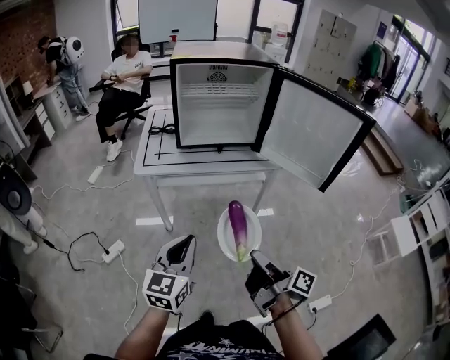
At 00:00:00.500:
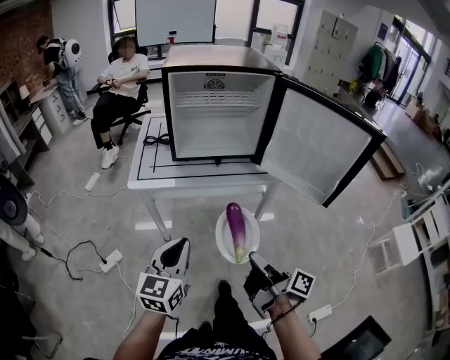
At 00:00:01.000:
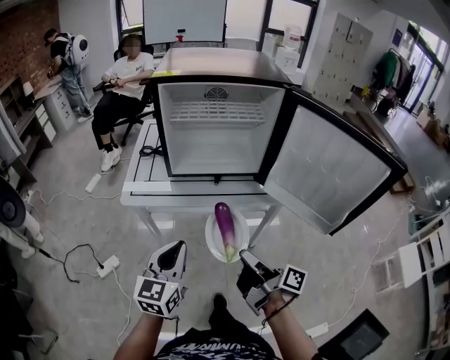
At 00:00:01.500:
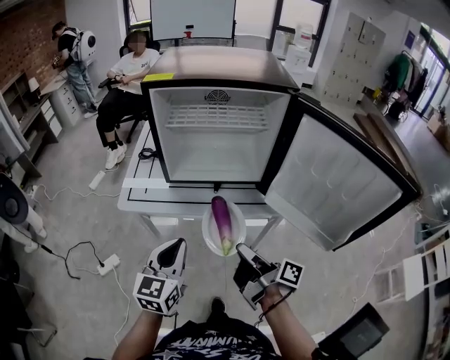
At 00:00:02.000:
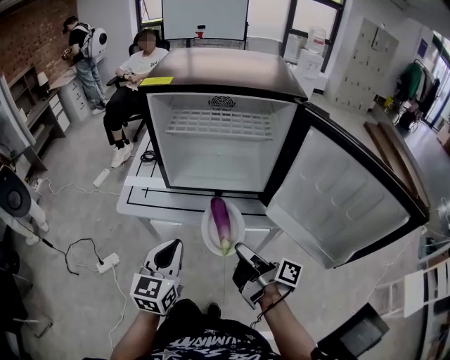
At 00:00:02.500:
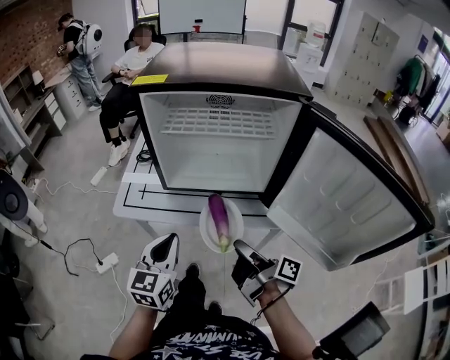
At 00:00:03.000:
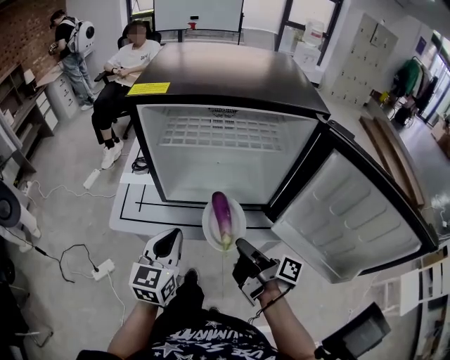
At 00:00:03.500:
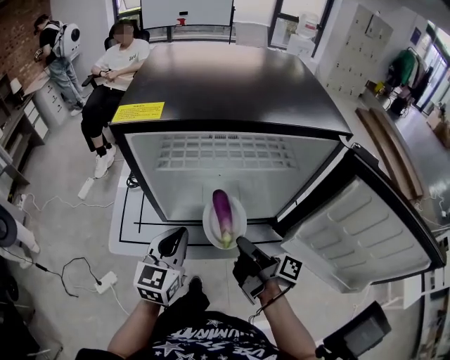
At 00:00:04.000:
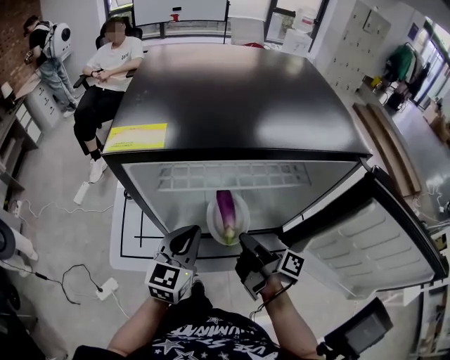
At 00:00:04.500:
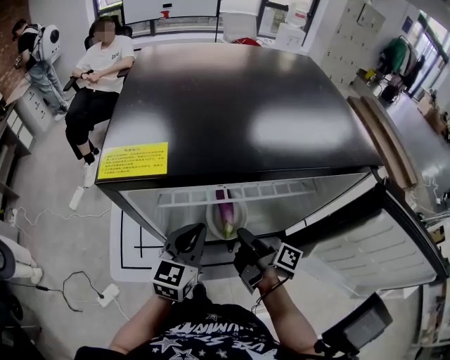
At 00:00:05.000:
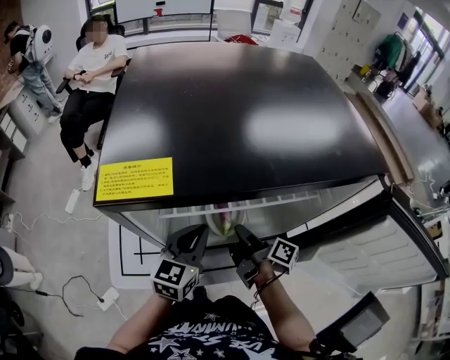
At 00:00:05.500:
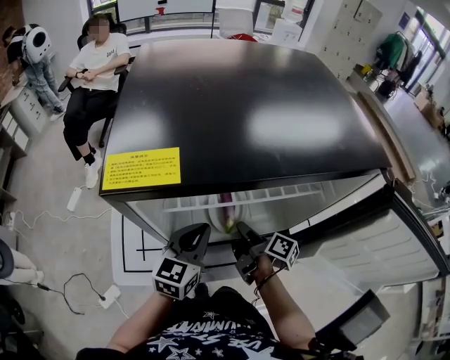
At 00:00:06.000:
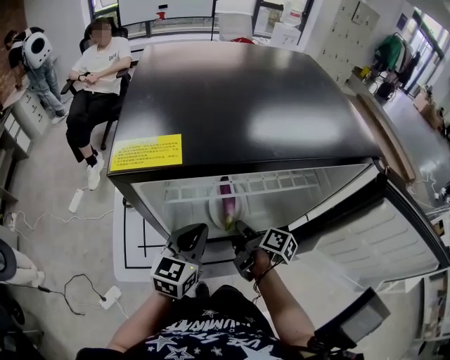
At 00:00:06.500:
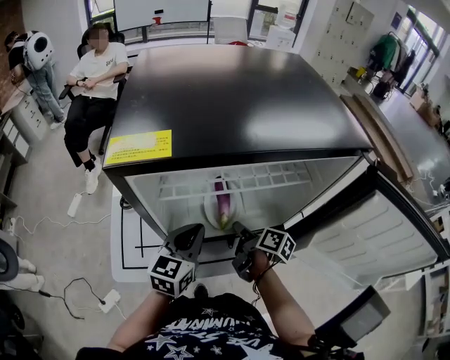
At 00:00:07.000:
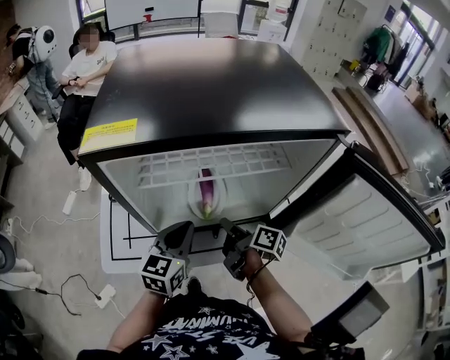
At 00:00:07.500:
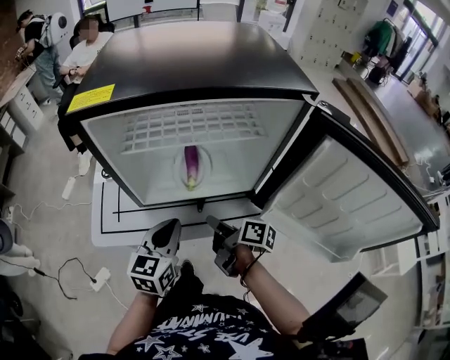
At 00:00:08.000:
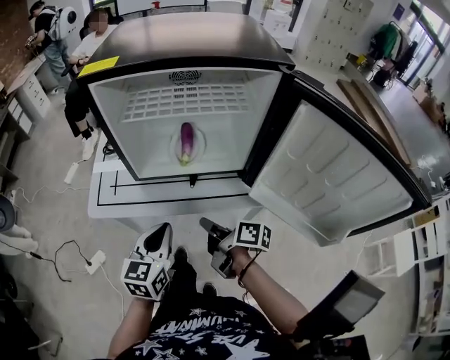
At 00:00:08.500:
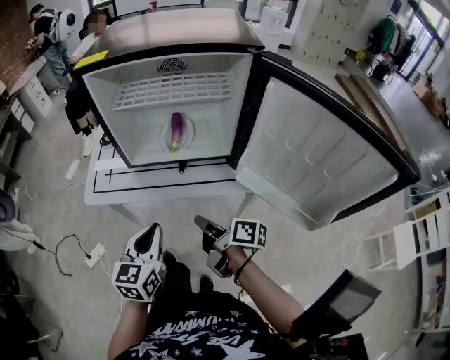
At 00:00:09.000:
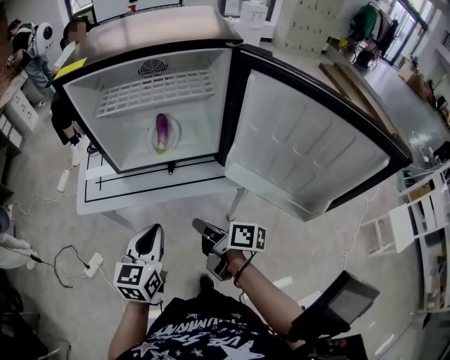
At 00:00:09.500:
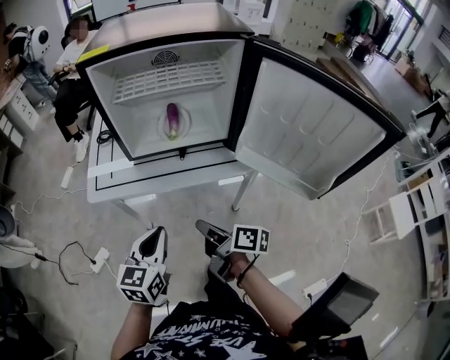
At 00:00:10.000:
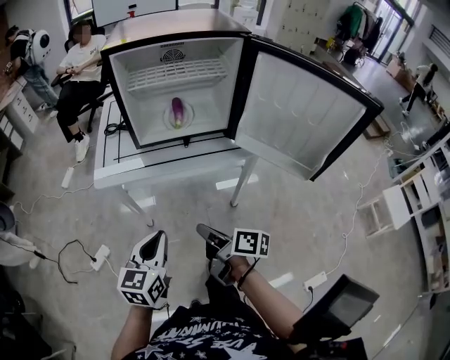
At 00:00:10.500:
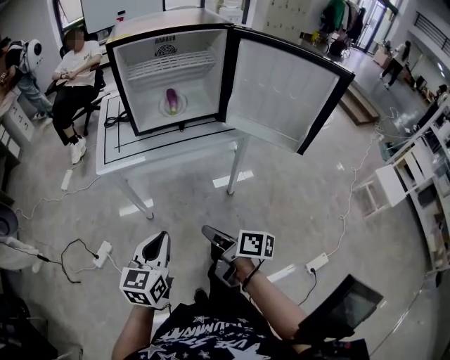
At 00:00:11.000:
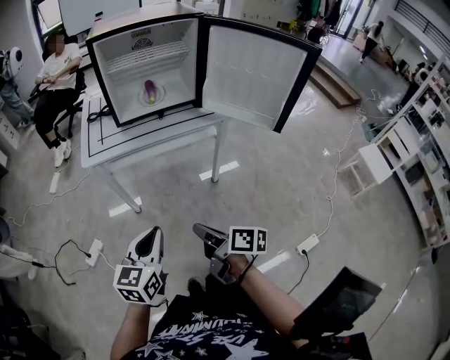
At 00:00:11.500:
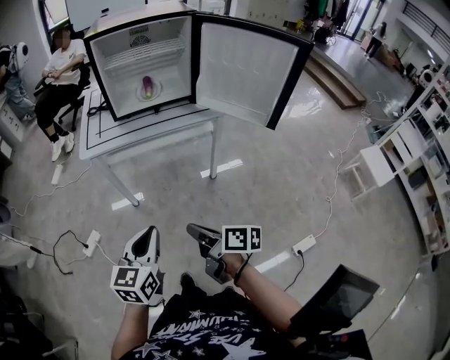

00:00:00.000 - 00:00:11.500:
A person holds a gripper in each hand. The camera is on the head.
00:00:00.000 - 00:00:02.000: The left gripper moves approximately 25 cm.
00:00:02.000 - 00:00:04.000: The left gripper ends up about 25 cm from where it was.
00:00:06.000 - 00:00:07.500: The left gripper moves roughly 10 cm.
00:00:07.500 - 00:00:09.500: The left gripper changes place by approximately 20 cm.
00:00:09.500 - 00:00:11.500: The left gripper changes place by some 30 cm.

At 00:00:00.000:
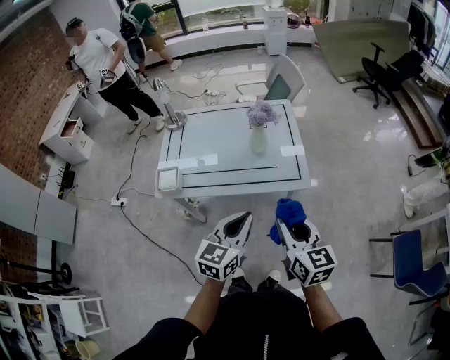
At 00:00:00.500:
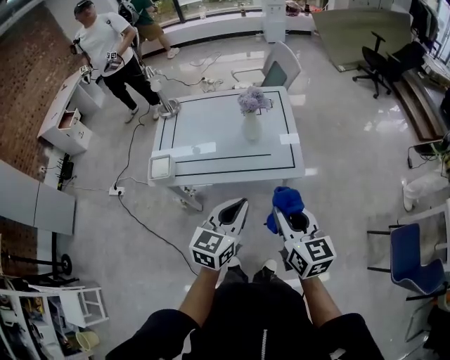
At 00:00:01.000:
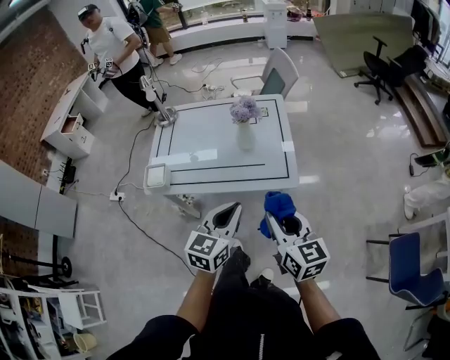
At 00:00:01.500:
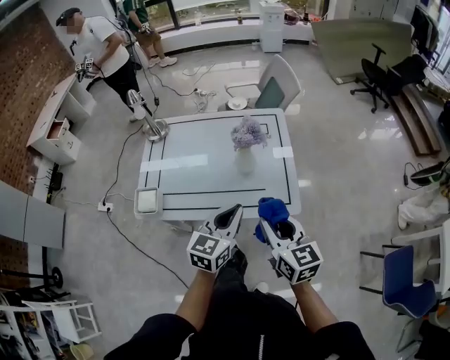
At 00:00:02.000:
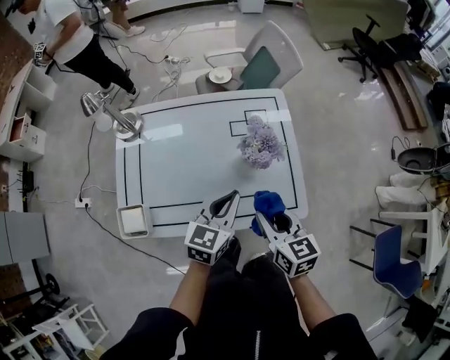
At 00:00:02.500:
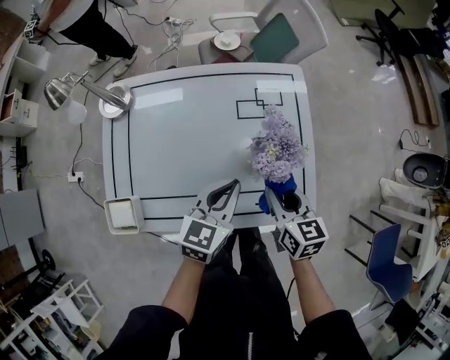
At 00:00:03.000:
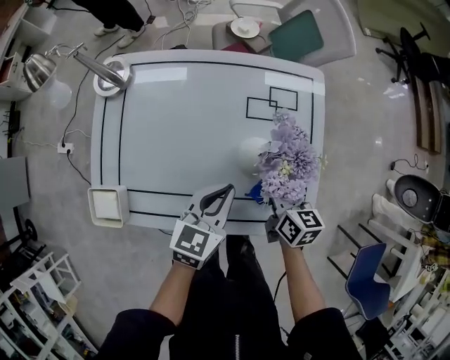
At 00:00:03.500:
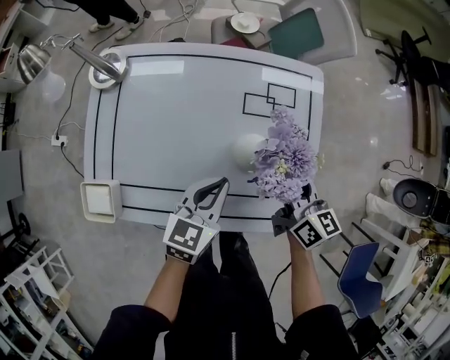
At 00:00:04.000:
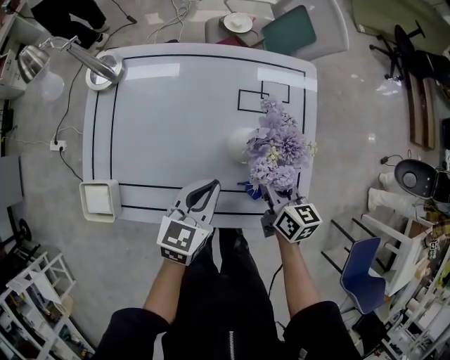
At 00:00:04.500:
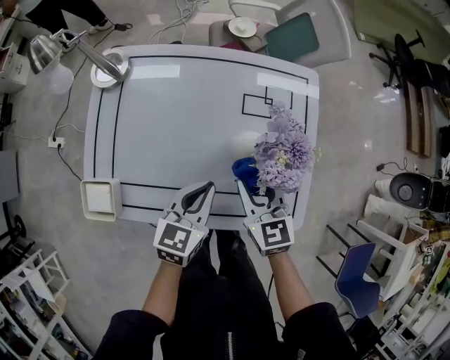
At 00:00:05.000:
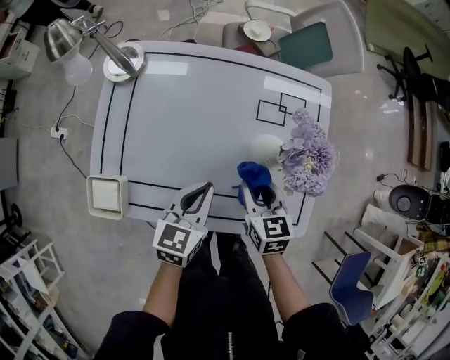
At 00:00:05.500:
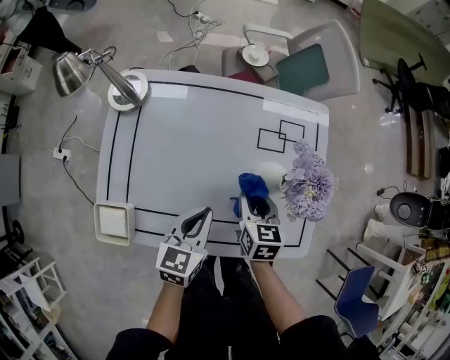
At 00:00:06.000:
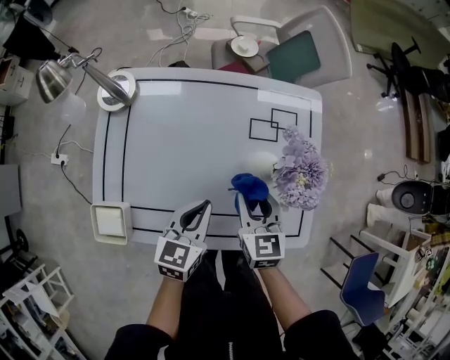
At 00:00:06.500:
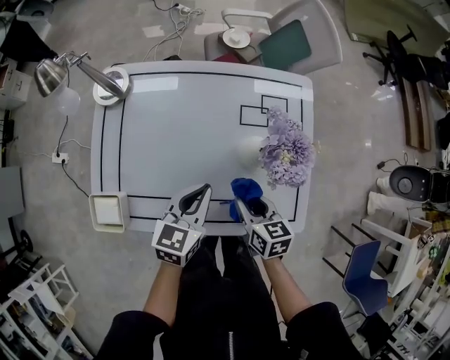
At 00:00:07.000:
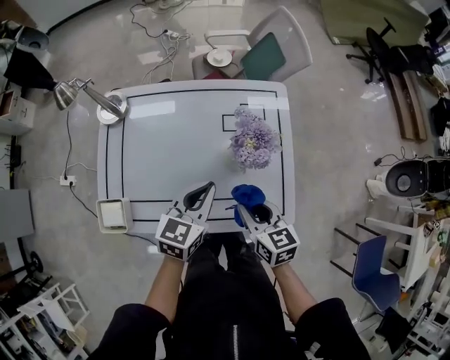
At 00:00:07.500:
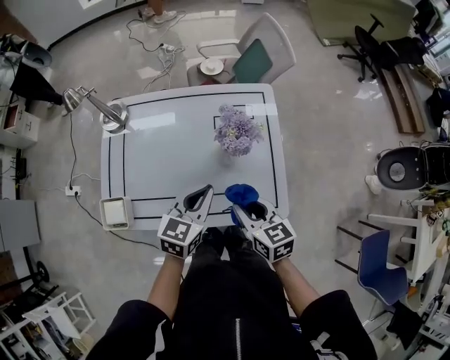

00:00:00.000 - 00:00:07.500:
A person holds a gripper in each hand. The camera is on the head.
00:00:00.000 - 00:00:02.000: The two grippers go roughly 30 cm forward.
00:00:02.000 - 00:00:04.000: The right gripper heads downward and forward, covering roughly 20 cm. The left gripper shifts roughly 10 cm downward and forward.
00:00:04.000 - 00:00:05.500: Both grippers travel together to the left, roughly 10 cm.
00:00:05.500 - 00:00:07.500: The right gripper is displaced backward, upward and to the right by about 20 cm. Meanwhile the left gripper travels to the right and upward by roughly 15 cm.

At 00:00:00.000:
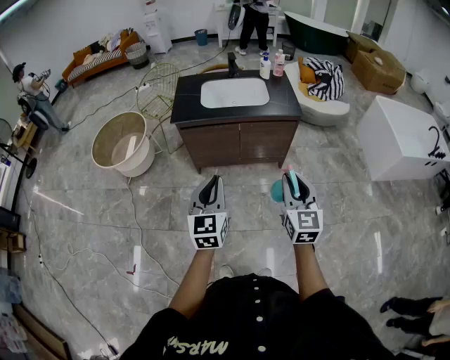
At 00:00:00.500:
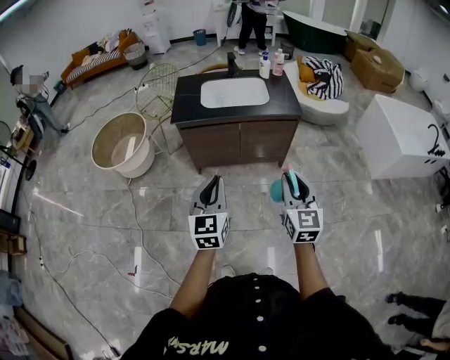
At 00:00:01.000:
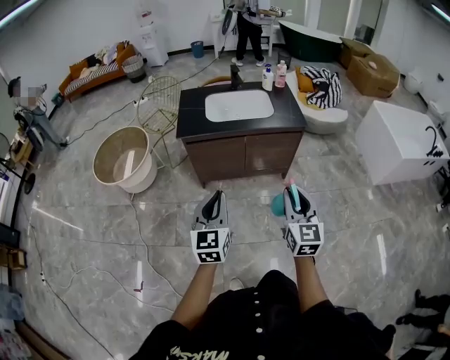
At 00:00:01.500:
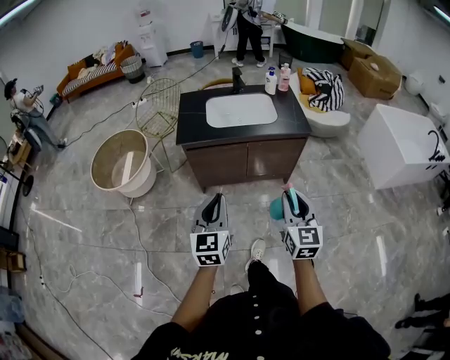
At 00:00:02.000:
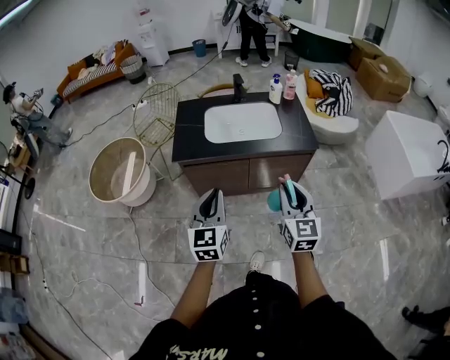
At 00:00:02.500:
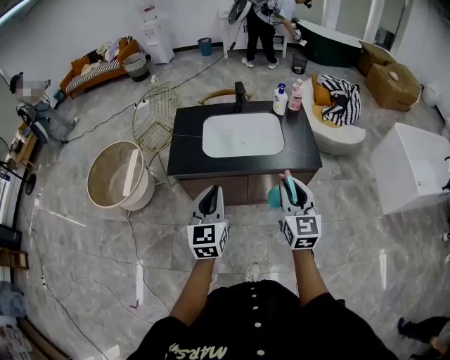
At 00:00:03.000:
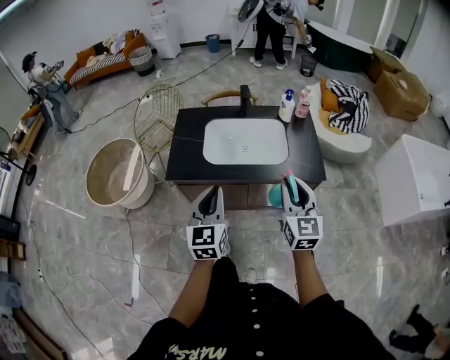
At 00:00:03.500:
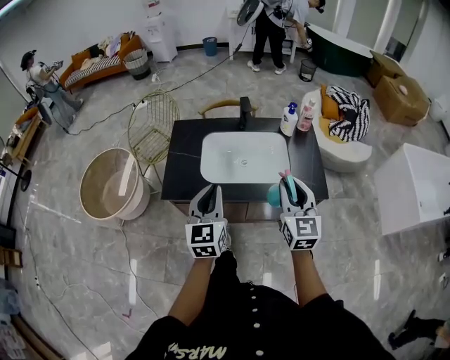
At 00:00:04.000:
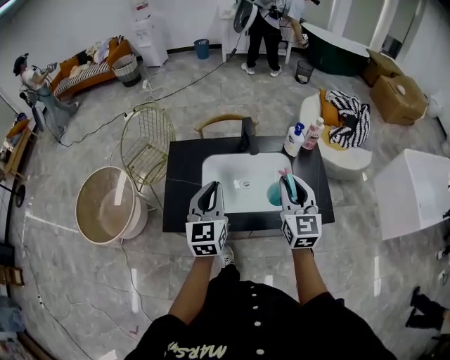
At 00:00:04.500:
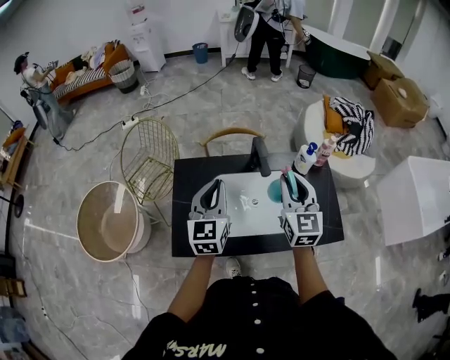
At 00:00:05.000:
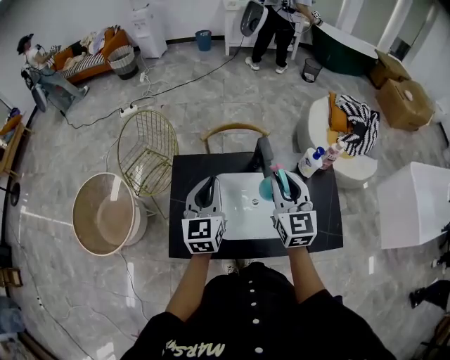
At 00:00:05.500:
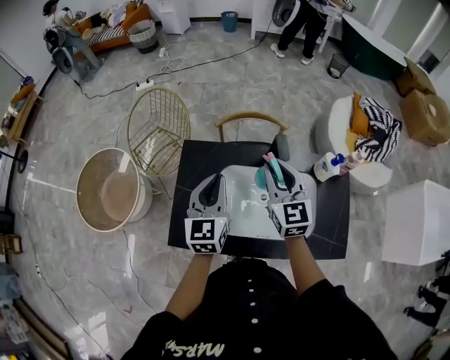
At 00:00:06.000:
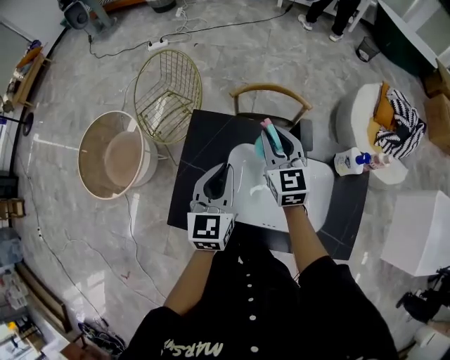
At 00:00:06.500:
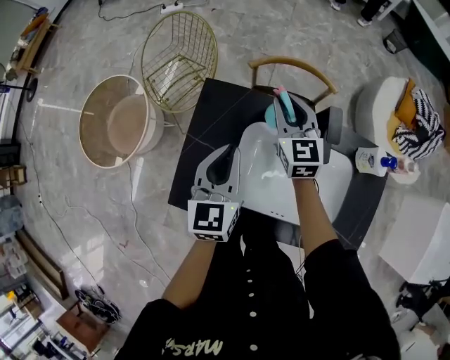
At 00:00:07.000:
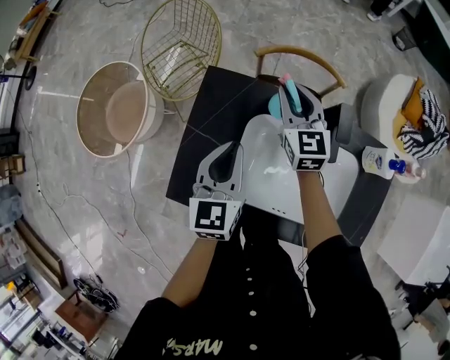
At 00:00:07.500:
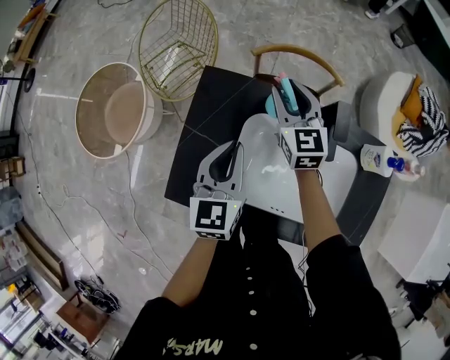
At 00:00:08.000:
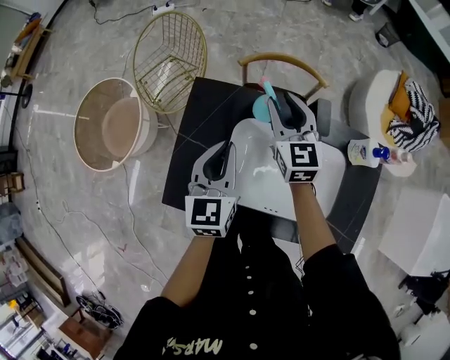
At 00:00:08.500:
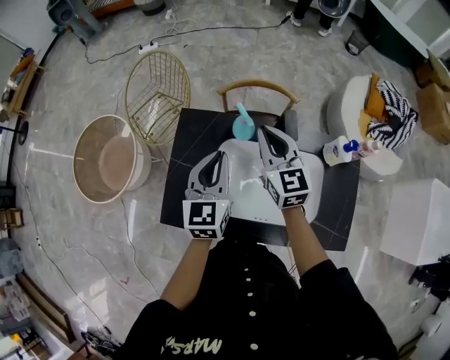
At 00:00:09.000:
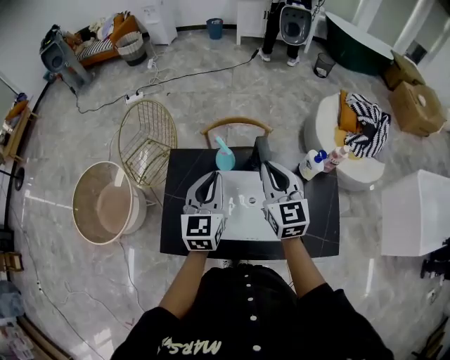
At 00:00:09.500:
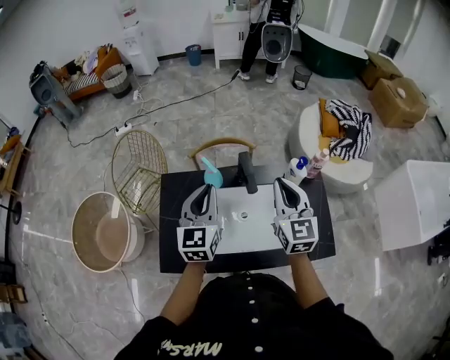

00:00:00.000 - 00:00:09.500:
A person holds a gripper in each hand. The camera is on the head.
00:00:00.000 - 00:00:02.000: The grippers both shift forward by roughly 20 cm.
00:00:02.000 - 00:00:04.000: Both grippers are carried forward, about 40 cm.
00:00:04.000 - 00:00:05.500: The left gripper heads forward, covering roughly 15 cm, while the right gripper heads forward and to the left, covering about 25 cm.
00:00:05.500 - 00:00:07.500: The right gripper is displaced forward, downward and to the left by about 20 cm. Meanwhile the left gripper shifts about 10 cm downward.
00:00:07.500 - 00:00:09.500: The right gripper goes approximately 35 cm backward, to the right and upward, changes its angle by approximately 30 degrees, and closes. Meanwhile the left gripper is displaced upward and to the right by roughly 15 cm, and changes its angle by roughly 20 degrees.
